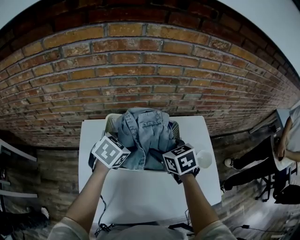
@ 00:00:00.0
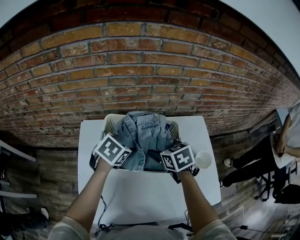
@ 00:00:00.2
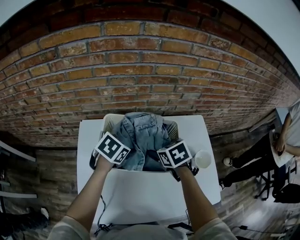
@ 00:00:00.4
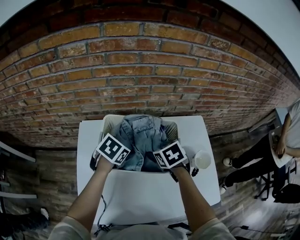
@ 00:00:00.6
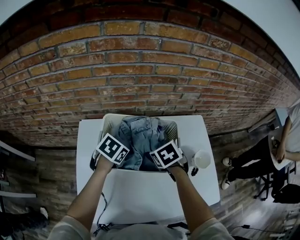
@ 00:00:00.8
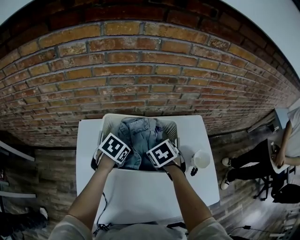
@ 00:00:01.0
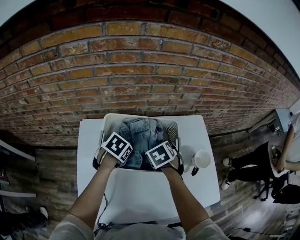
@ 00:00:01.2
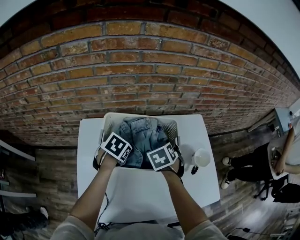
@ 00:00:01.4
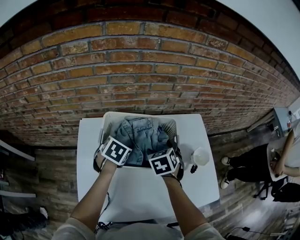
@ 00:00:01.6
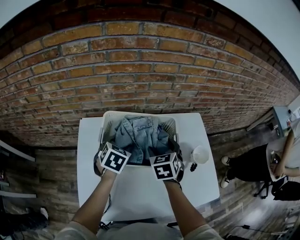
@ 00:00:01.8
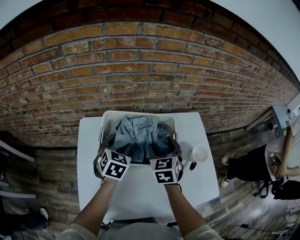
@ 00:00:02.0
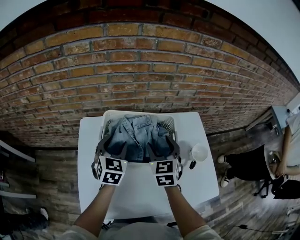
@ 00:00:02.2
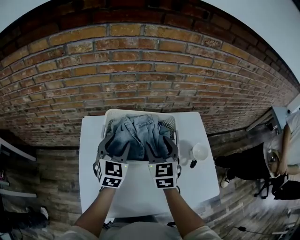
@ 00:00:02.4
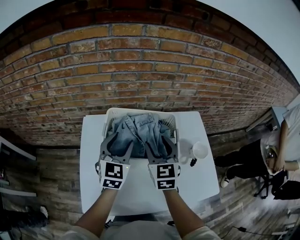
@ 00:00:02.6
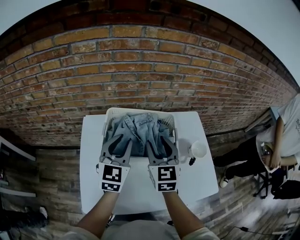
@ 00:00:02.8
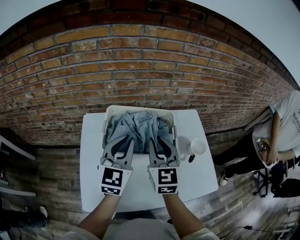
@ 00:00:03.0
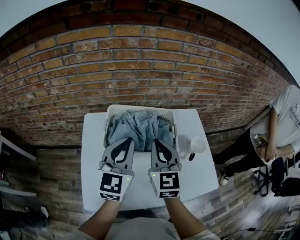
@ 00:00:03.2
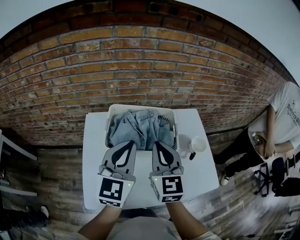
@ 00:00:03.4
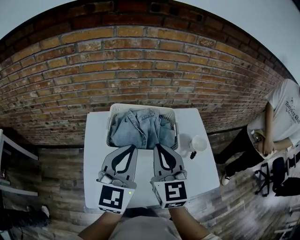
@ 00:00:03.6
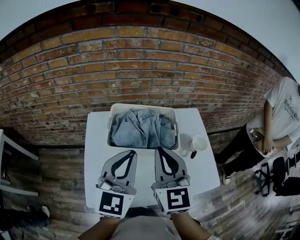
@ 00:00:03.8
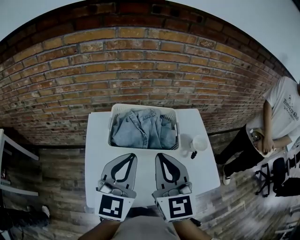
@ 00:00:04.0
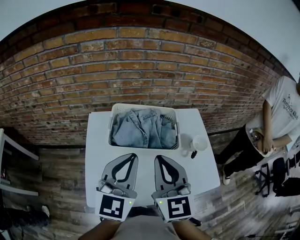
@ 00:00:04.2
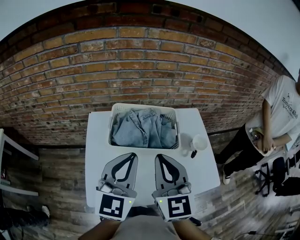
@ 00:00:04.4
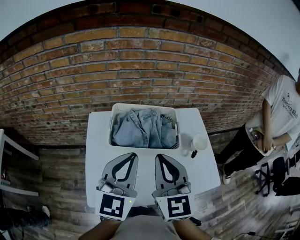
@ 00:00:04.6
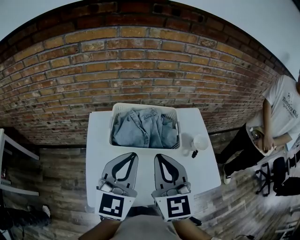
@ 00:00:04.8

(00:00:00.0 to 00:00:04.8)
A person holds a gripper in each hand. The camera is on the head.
00:00:00.0 - 00:00:01.6: The right gripper changes its angle by some 20 degrees. The left gripper goes roughly 5 cm downward.
00:00:01.6 - 00:00:03.2: Both grippers move upward and backward, about 20 cm. The left gripper tips its fingers upward by approximately 60 degrees, and closes; the right gripper tilts its fingers some 40 degrees upward, and closes up.
00:00:03.2 - 00:00:04.8: The right gripper moves backward and upward, approximately 10 cm. The left gripper shifts approximately 10 cm backward.

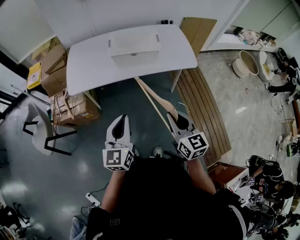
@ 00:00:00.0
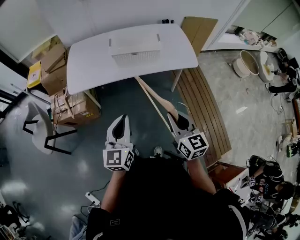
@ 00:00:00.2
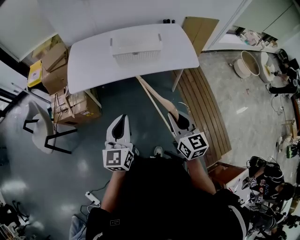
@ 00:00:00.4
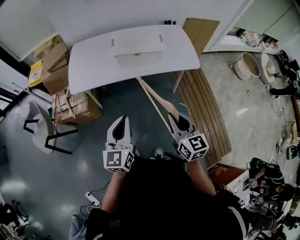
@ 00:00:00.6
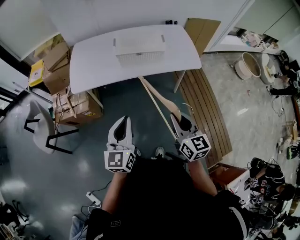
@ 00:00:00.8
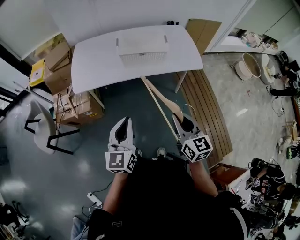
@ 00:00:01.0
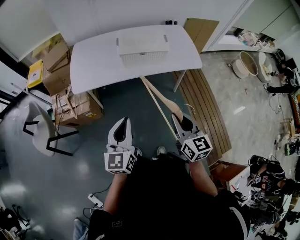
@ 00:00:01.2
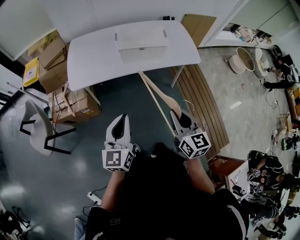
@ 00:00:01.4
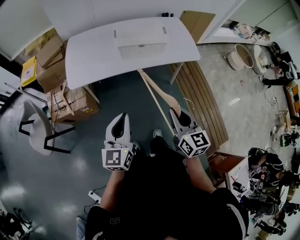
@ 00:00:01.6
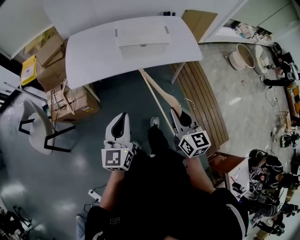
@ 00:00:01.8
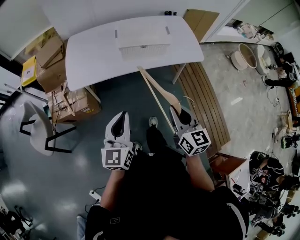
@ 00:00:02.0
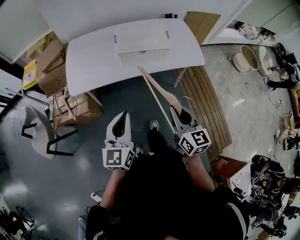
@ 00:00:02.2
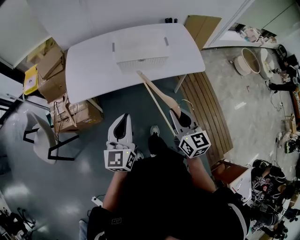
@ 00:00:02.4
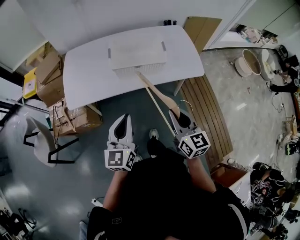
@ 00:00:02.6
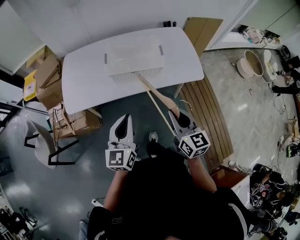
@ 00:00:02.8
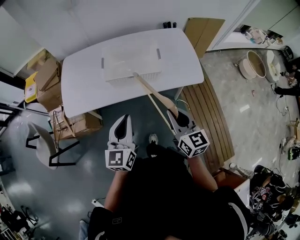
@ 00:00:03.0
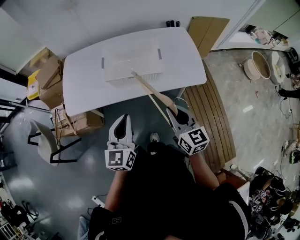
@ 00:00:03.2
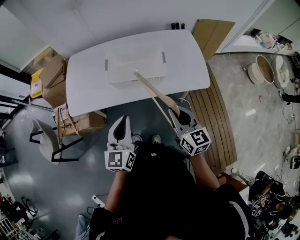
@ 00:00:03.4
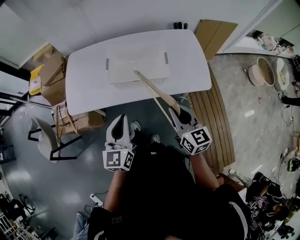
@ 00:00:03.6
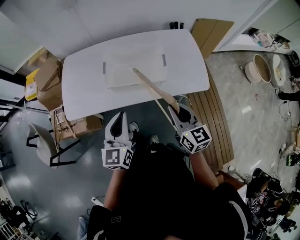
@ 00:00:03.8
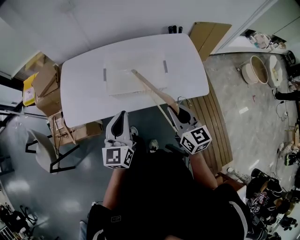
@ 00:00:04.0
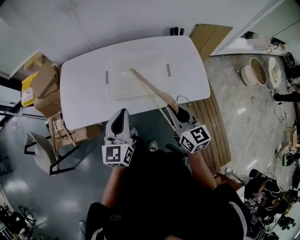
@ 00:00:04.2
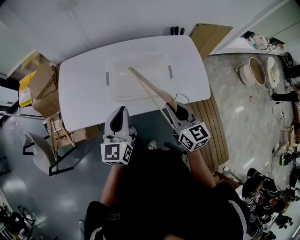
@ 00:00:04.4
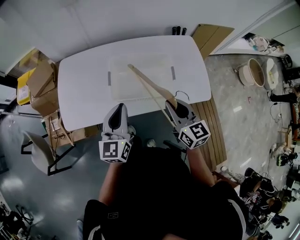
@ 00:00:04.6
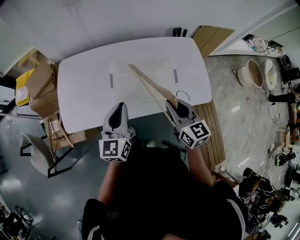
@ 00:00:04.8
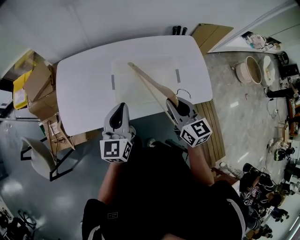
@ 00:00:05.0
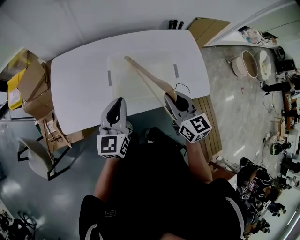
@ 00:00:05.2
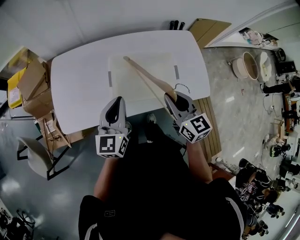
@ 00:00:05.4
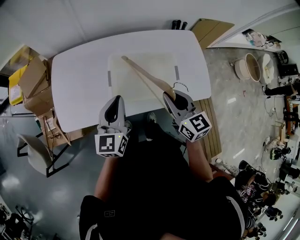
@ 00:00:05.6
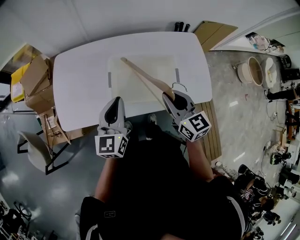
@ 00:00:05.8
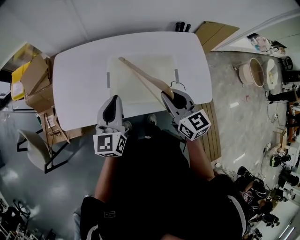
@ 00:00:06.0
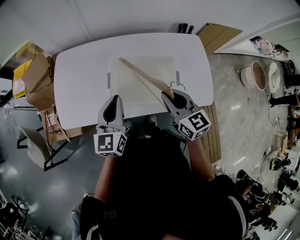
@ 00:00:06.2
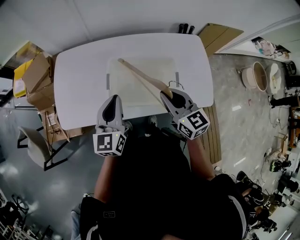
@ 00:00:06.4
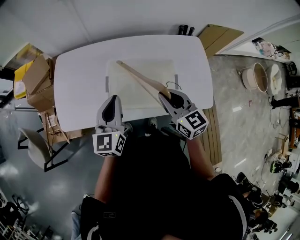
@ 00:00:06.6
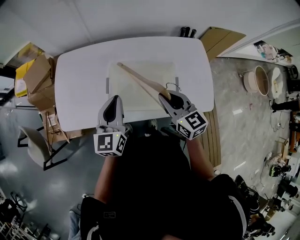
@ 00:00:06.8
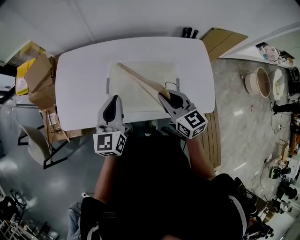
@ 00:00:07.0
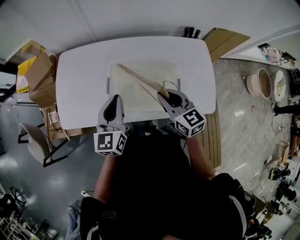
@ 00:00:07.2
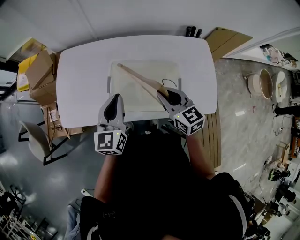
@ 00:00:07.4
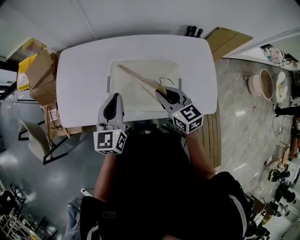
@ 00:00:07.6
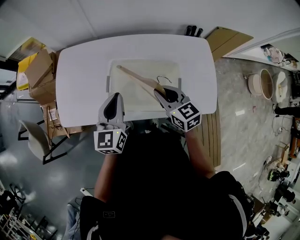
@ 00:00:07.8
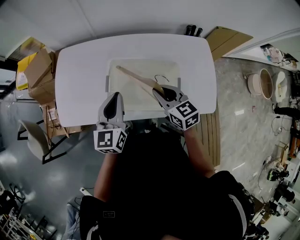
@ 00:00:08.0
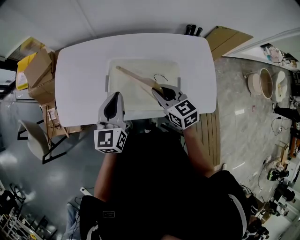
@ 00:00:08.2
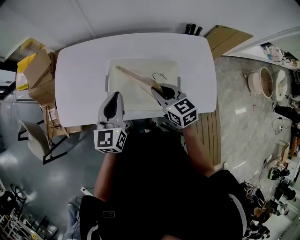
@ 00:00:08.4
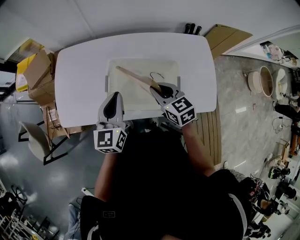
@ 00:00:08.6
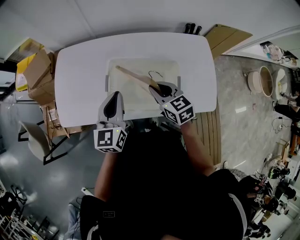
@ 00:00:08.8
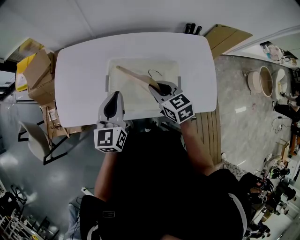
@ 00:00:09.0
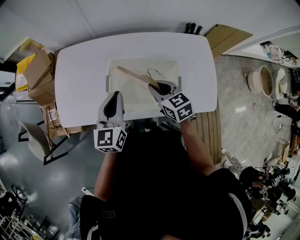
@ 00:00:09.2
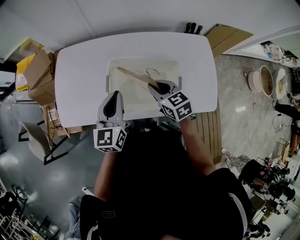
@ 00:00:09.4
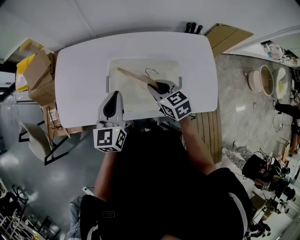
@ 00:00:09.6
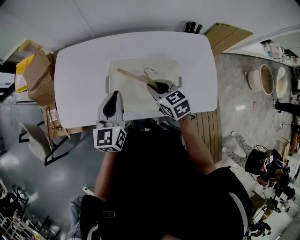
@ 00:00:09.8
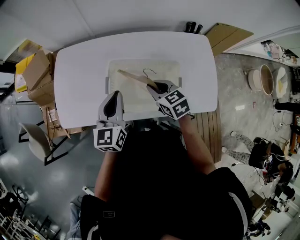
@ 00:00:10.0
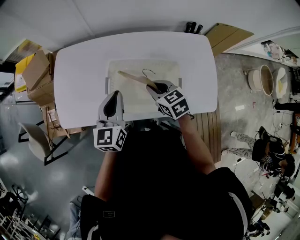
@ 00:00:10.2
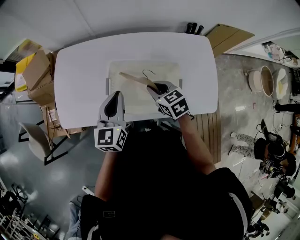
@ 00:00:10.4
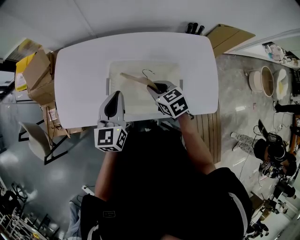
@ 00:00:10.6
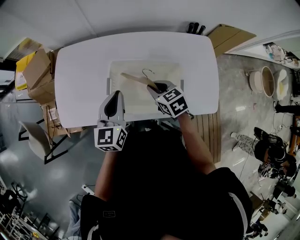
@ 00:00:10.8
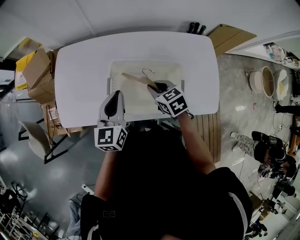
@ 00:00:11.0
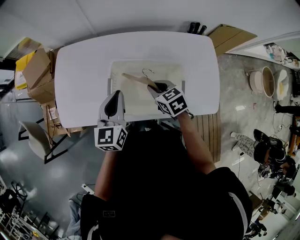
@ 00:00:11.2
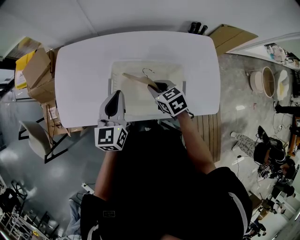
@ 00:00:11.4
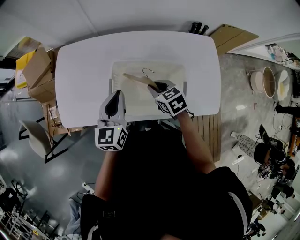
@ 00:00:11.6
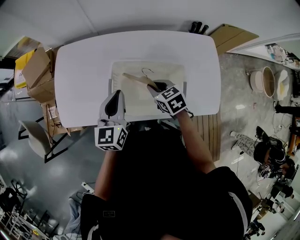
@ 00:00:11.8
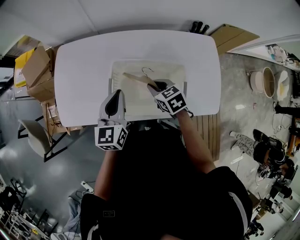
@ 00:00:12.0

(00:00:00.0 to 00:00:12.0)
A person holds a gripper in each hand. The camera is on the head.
00:00:00.0 - 00:00:01.6: Both grippers move to the left, some 5 cm.
00:00:01.6 - 00:00:03.0: Both grippers travel together forward and to the right, approximately 25 cm.
00:00:03.0 - 00:00:04.4: Both grippers move forward, about 20 cm.
00:00:04.4 - 00:00:06.0: The two grippers go some 10 cm forward.
00:00:06.0 - 00:00:07.6: The left gripper moves some 5 cm. The right gripper shifts approximately 10 cm forward and downward.
00:00:07.6 - 00:00:09.0: The grippers stay close to where they were, moving slightly.
00:00:09.0 - 00:00:10.4: The grippers make only small movements.
00:00:10.4 - 00:00:12.0: There are only small adjustments of the grippers.

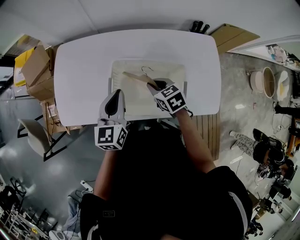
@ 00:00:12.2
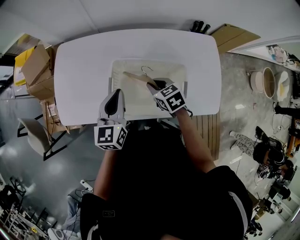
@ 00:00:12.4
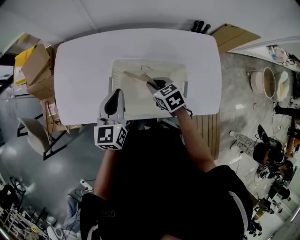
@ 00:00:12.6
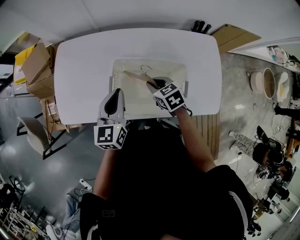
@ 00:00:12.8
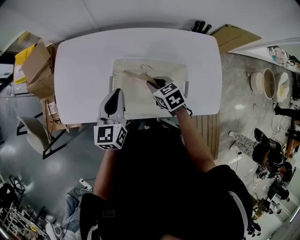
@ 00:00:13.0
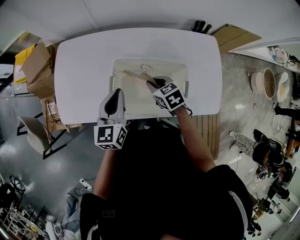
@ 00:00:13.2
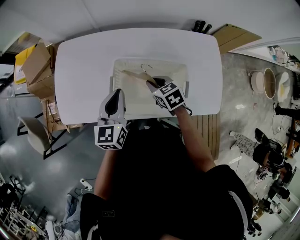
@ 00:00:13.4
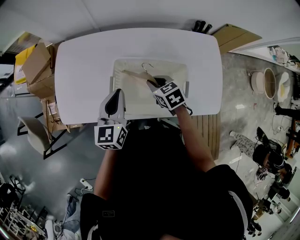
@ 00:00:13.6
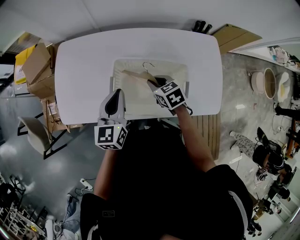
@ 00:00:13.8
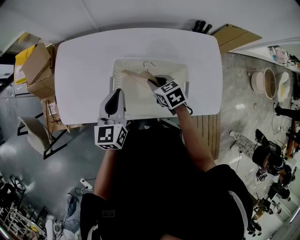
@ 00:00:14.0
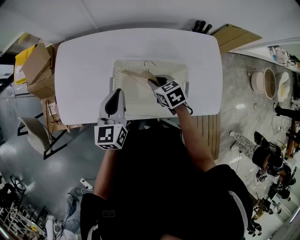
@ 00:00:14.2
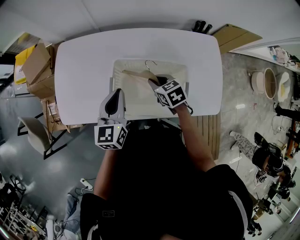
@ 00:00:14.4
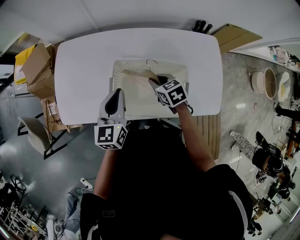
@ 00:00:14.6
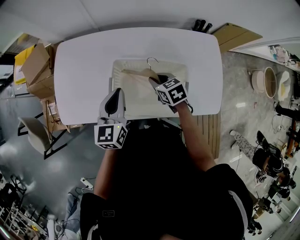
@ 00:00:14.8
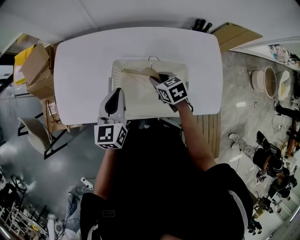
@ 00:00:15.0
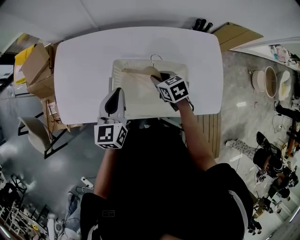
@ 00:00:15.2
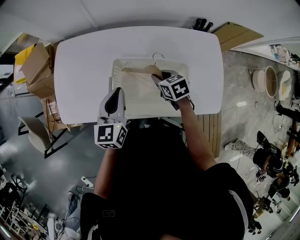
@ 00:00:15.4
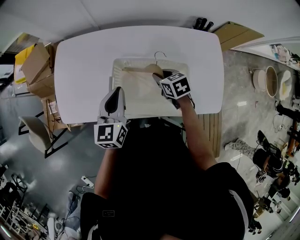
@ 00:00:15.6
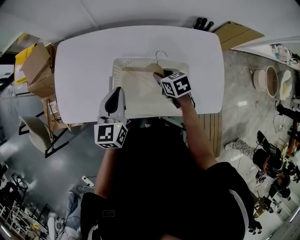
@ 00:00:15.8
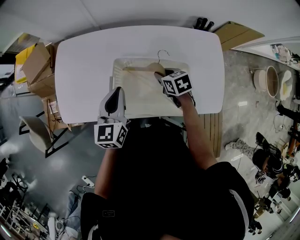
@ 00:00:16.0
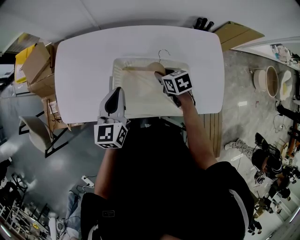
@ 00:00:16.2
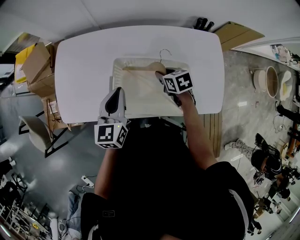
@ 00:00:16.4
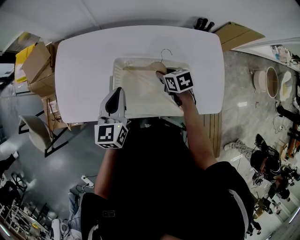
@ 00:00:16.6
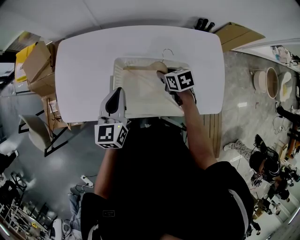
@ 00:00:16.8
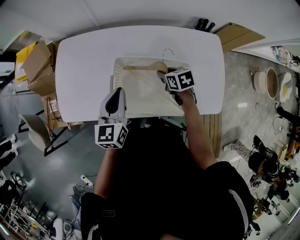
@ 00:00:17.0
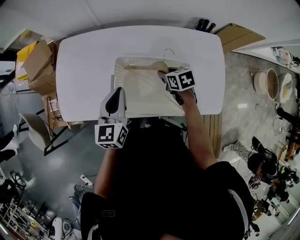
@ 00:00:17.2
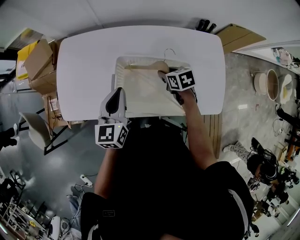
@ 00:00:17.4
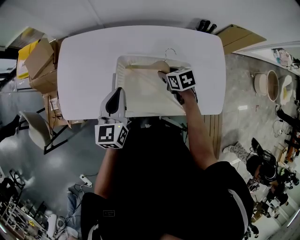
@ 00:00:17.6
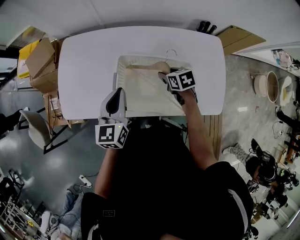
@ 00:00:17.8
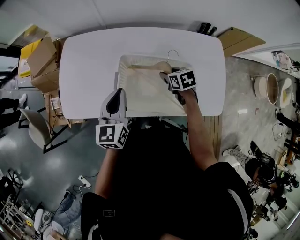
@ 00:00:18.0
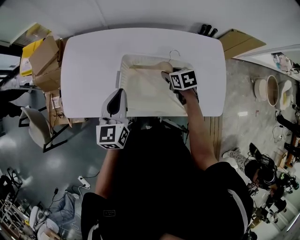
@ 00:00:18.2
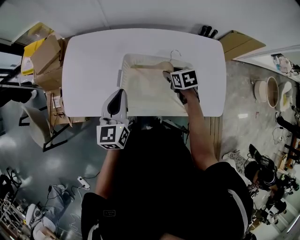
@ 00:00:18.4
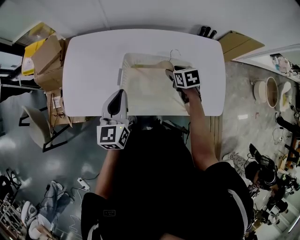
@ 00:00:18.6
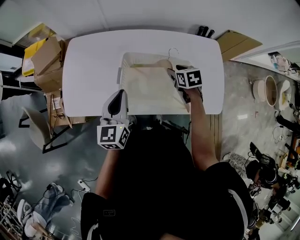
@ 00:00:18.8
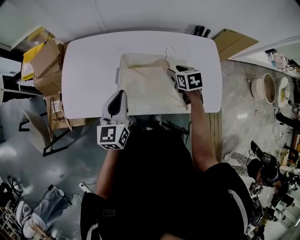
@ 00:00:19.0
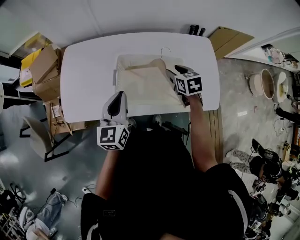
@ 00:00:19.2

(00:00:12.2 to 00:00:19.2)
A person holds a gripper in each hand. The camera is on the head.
00:00:12.2 - 00:00:15.0: There are only small adjustments of the grippers.
00:00:15.0 - 00:00:17.8: The grippers move only a little.
00:00:17.8 - 00:00:19.2: The right gripper moves upward, some 10 cm. Meanwhile the left gripper goes approximately 5 cm backward.
